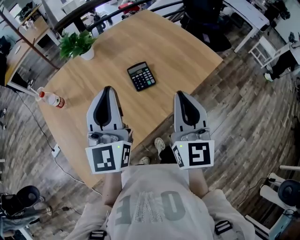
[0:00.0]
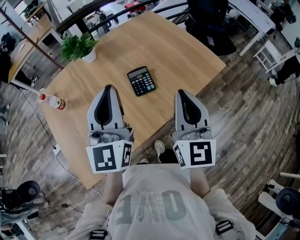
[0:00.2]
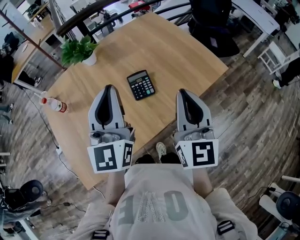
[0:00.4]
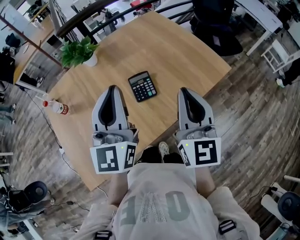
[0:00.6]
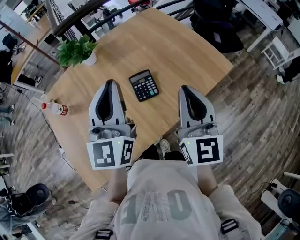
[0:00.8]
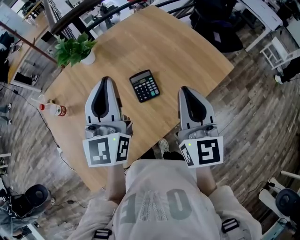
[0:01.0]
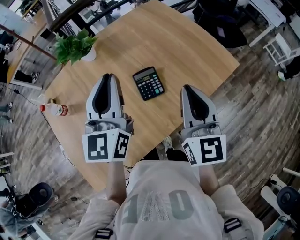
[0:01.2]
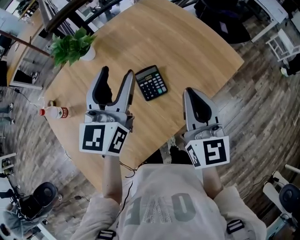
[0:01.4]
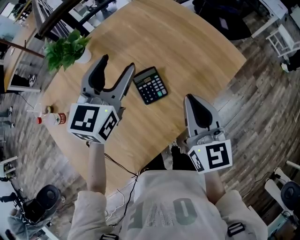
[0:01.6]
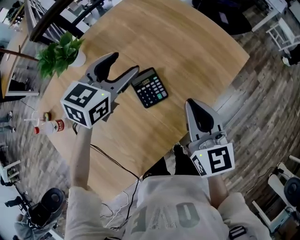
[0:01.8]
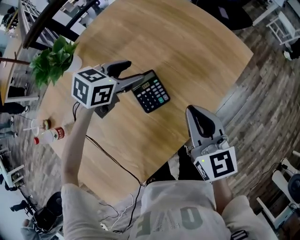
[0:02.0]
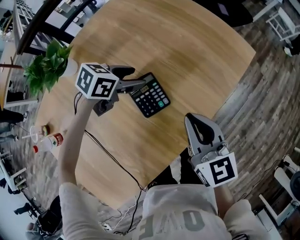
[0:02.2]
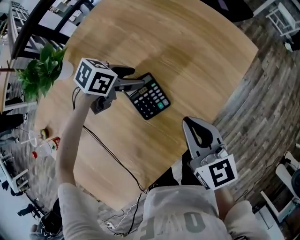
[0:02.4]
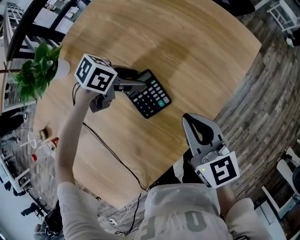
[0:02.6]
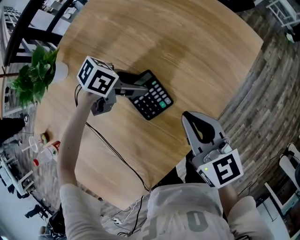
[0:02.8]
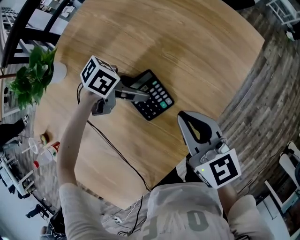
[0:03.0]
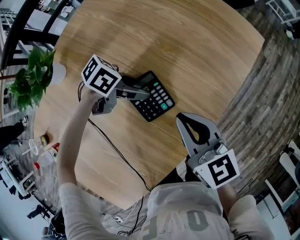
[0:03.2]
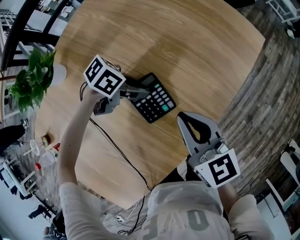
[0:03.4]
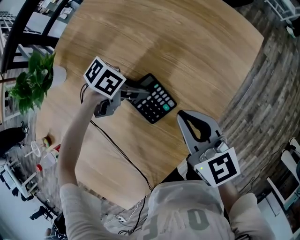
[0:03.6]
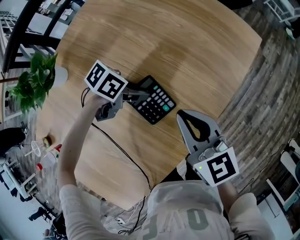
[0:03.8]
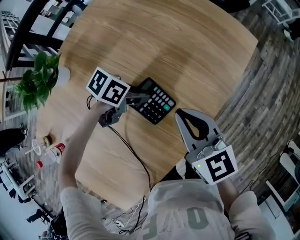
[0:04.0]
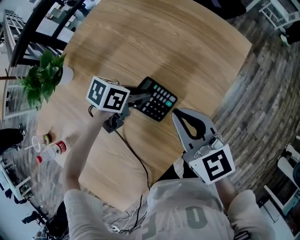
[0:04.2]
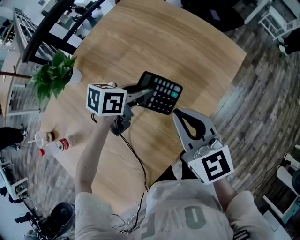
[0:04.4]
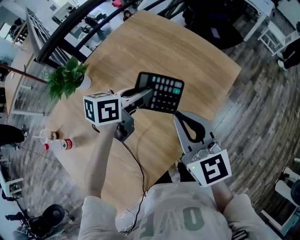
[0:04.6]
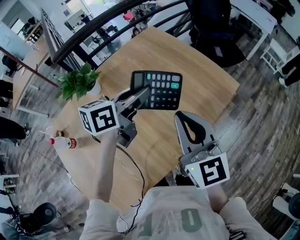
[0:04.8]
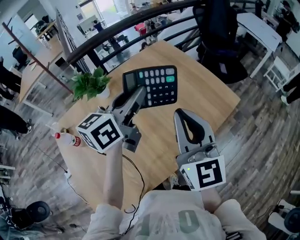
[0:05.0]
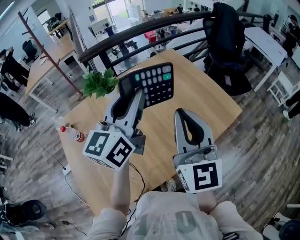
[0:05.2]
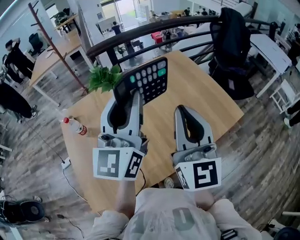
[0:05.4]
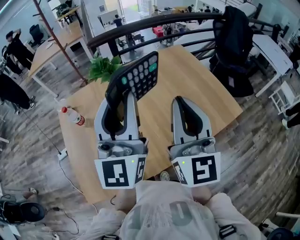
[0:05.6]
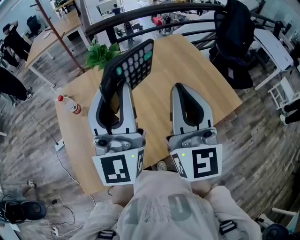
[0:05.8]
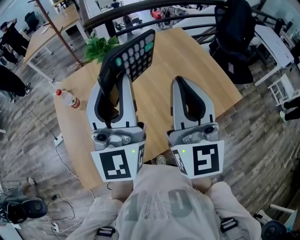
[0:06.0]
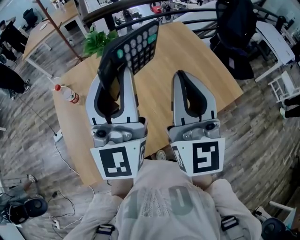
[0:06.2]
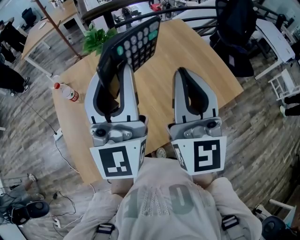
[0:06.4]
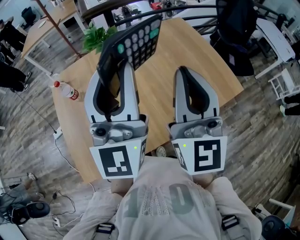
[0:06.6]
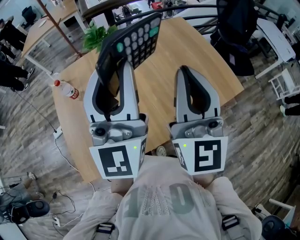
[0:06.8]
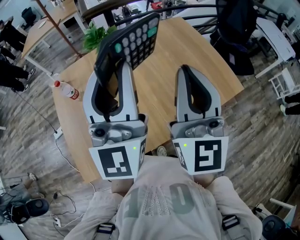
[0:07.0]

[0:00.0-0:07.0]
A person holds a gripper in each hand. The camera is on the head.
0:00.0 to 0:01.4: The two grippers go about 15 cm forward. The left gripper opens.
0:01.4 to 0:02.8: The right gripper moves downward, roughly 15 cm, and swivels some 20 degrees, while the left gripper goes roughly 30 cm downward, and tips its fingers downward by about 40 degrees.
0:02.8 to 0:04.2: The right gripper travels upward by roughly 5 cm. The left gripper closes its fingers.
0:04.2 to 0:05.6: The left gripper is displaced upward by approximately 40 cm, and points its fingers roughly 70 degrees further upward, while the right gripper is displaced upward by about 25 cm, and angles its fingers upward, by about 30 degrees.
0:05.6 to 0:07.0: The grippers move only a little.

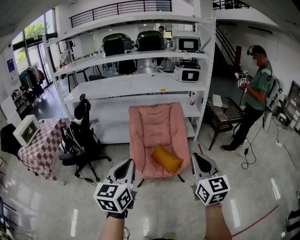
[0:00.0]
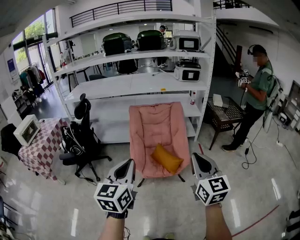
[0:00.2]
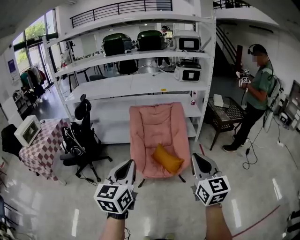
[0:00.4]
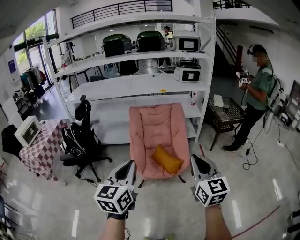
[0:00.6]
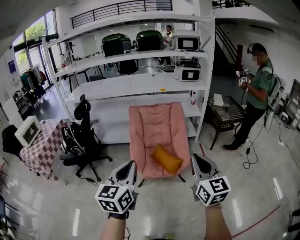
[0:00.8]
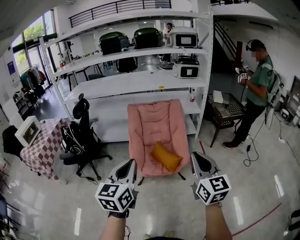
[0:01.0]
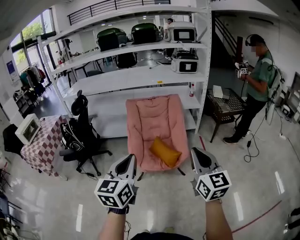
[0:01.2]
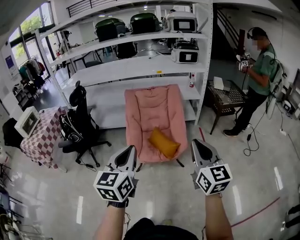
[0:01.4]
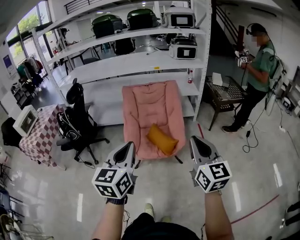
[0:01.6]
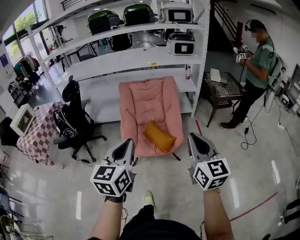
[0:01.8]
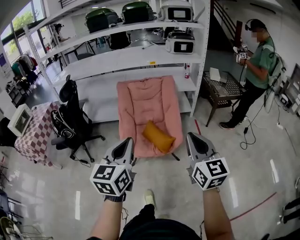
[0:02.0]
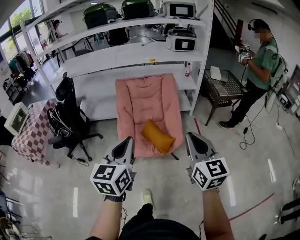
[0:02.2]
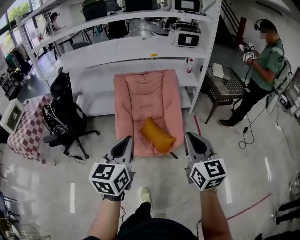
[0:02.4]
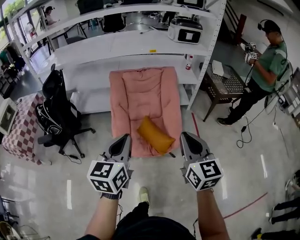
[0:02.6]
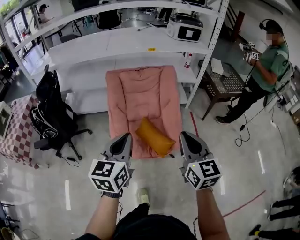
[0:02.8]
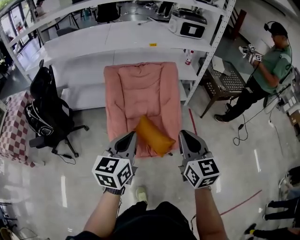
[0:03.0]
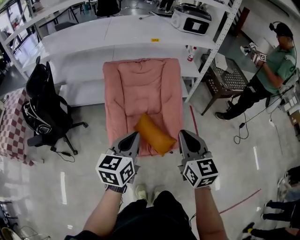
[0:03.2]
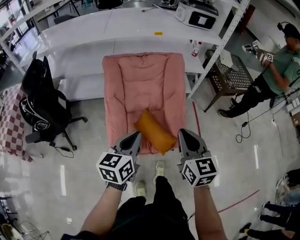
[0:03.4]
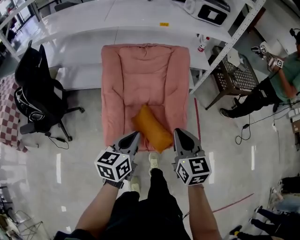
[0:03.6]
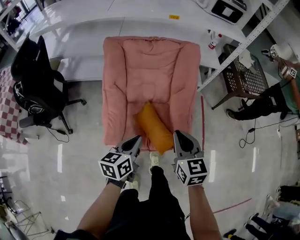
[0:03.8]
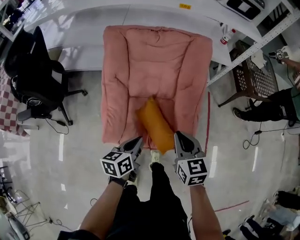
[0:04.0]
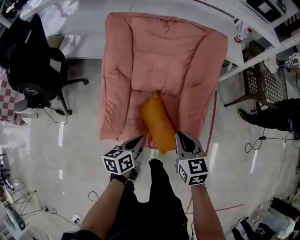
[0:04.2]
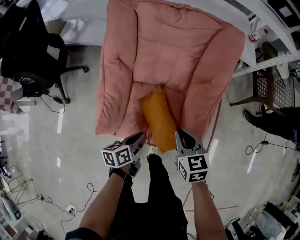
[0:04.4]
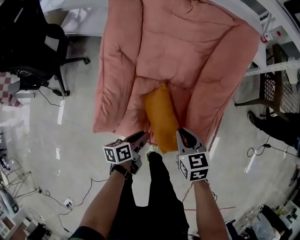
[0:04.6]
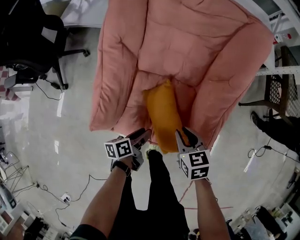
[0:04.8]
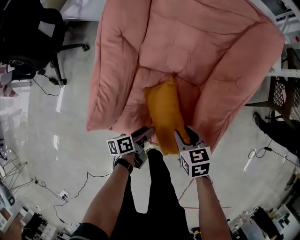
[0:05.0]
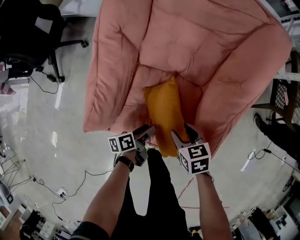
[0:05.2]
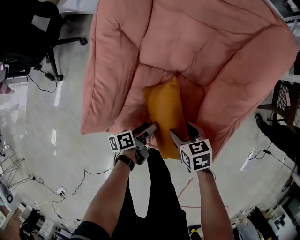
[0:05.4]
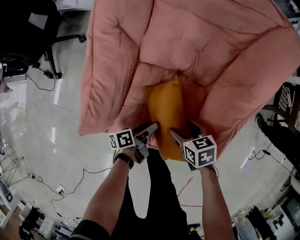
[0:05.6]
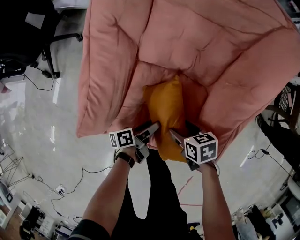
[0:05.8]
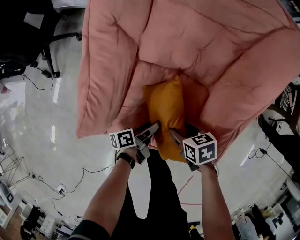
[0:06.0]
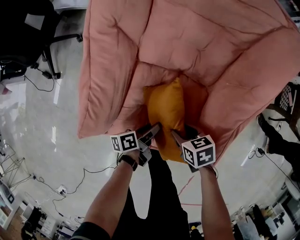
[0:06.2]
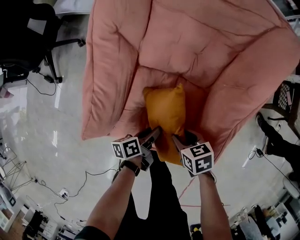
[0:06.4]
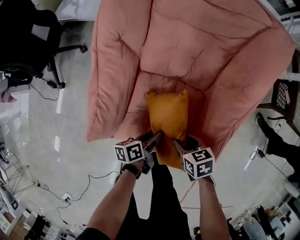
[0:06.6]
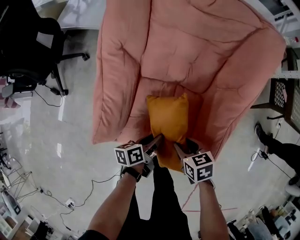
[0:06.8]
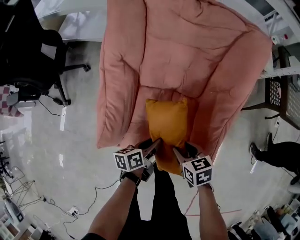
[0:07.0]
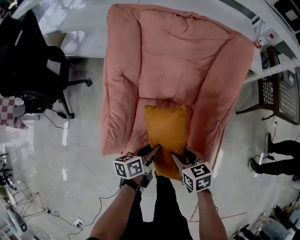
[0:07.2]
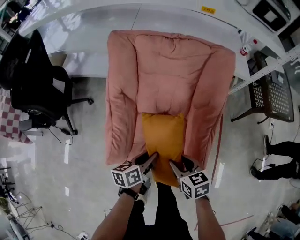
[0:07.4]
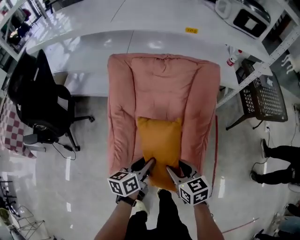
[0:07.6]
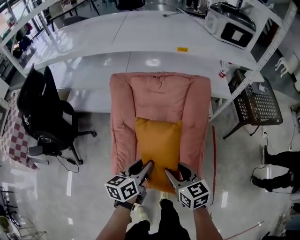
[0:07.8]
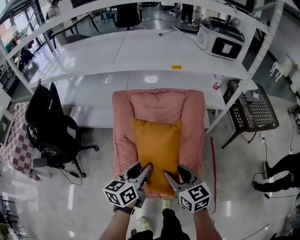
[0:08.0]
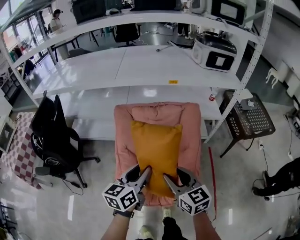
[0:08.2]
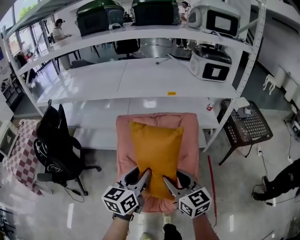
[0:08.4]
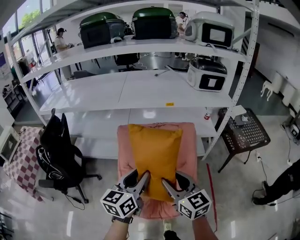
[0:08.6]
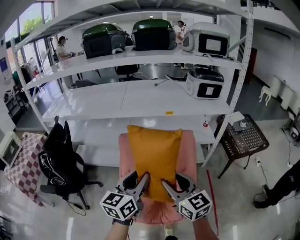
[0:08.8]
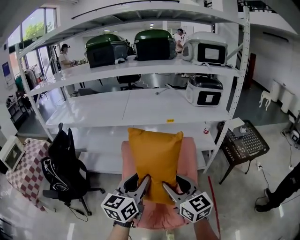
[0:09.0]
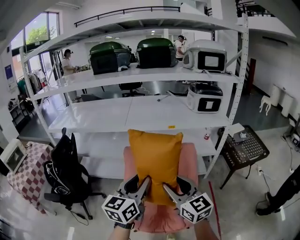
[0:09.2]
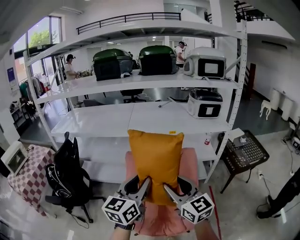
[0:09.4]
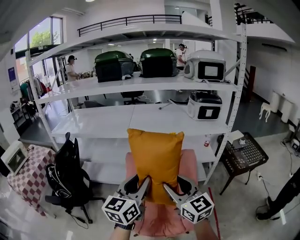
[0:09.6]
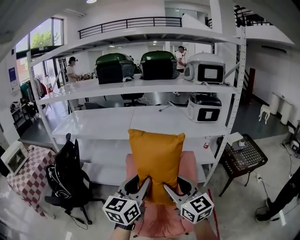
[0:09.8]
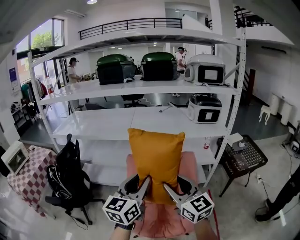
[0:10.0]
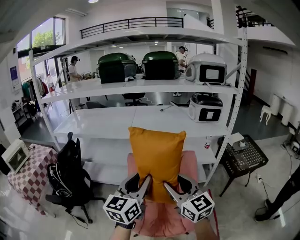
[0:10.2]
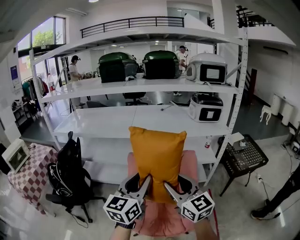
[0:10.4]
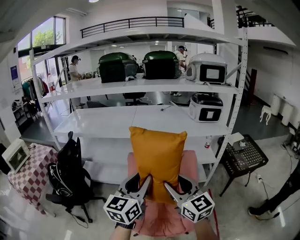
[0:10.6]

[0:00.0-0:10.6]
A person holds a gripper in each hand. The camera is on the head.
0:00.0 to 0:01.6: The two grippers go roughly 10 cm to the right.
0:01.6 to 0:03.0: Both grippers travel together forward, about 30 cm.
0:03.0 to 0:04.6: The two grippers go some 50 cm downward and forward. The left gripper twists some 60 degrees counterclockwise, seen from behind. Meanwhile the right gripper angles its fingers downward, by approximately 40 degrees.
0:04.6 to 0:06.0: Both grippers move downward, about 20 cm. The left gripper rotates roughly 20 degrees, and opens its fingers. The right gripper turns by some 30 degrees, and opens its fingers.
0:06.0 to 0:07.6: The grippers both shift upward by about 35 cm. The left gripper rotates around the line of its fingers by approximately 40 degrees, clockwise from behind, while the right gripper swivels about 40 degrees.
0:07.6 to 0:09.0: Both grippers travel together upward, some 40 cm. The left gripper turns by some 40 degrees. The right gripper tilts its fingers approximately 40 degrees upward.
0:09.0 to 0:10.6: The grippers both shift upward by about 10 cm.

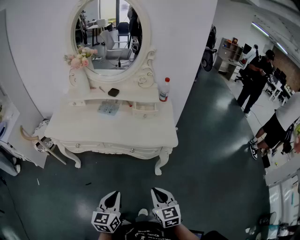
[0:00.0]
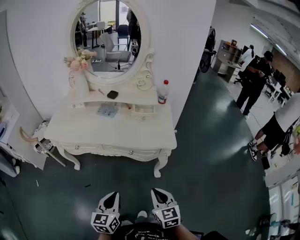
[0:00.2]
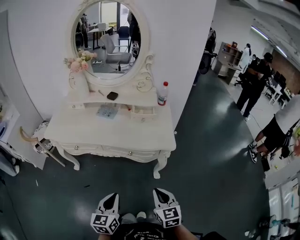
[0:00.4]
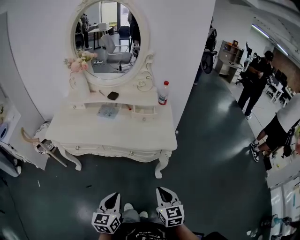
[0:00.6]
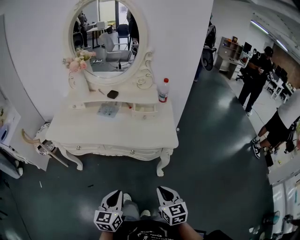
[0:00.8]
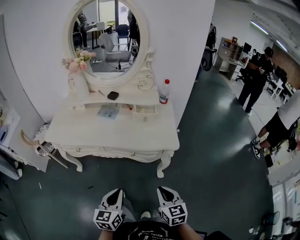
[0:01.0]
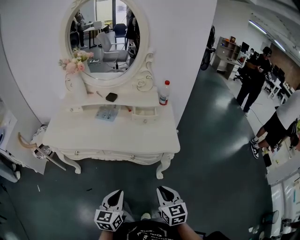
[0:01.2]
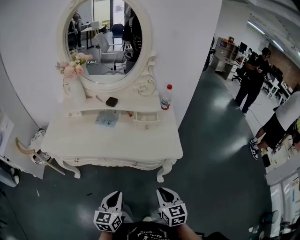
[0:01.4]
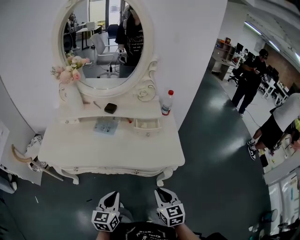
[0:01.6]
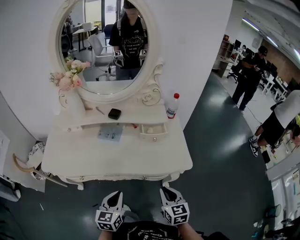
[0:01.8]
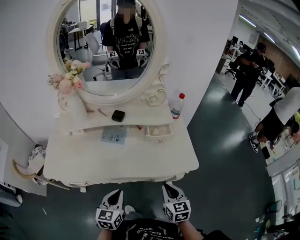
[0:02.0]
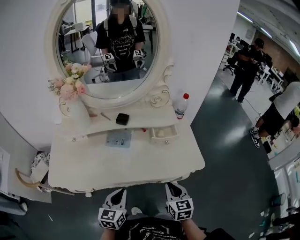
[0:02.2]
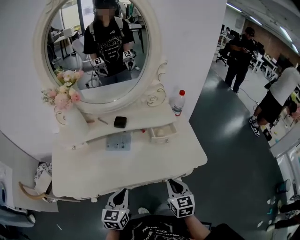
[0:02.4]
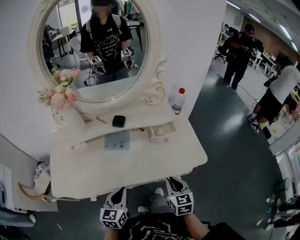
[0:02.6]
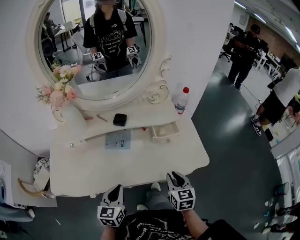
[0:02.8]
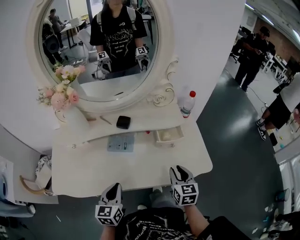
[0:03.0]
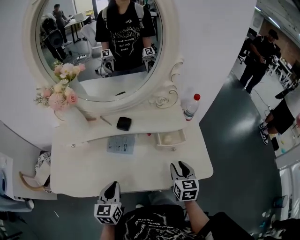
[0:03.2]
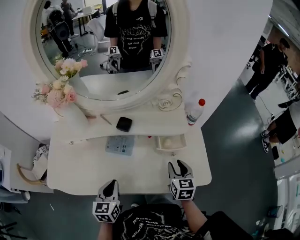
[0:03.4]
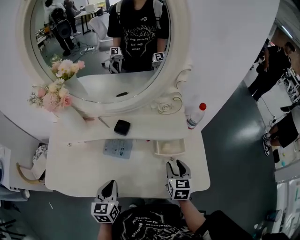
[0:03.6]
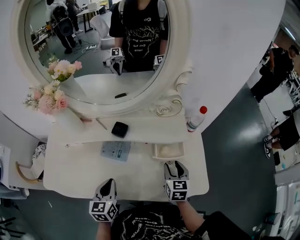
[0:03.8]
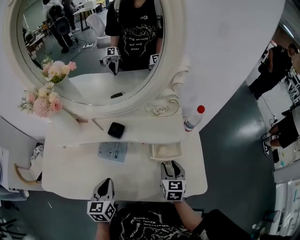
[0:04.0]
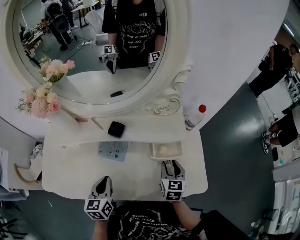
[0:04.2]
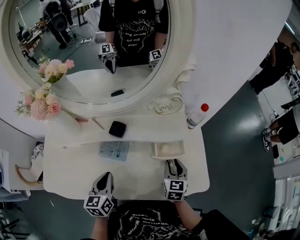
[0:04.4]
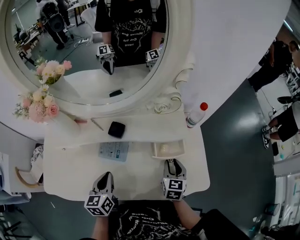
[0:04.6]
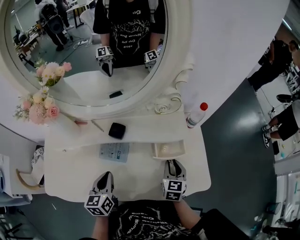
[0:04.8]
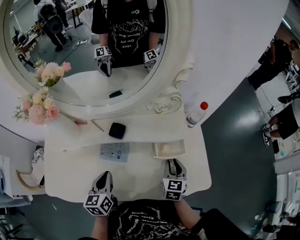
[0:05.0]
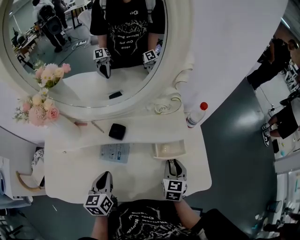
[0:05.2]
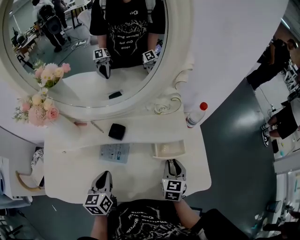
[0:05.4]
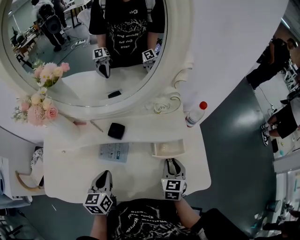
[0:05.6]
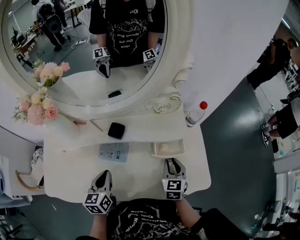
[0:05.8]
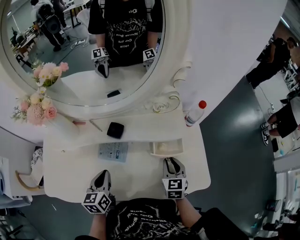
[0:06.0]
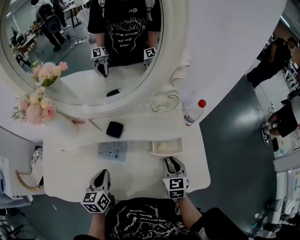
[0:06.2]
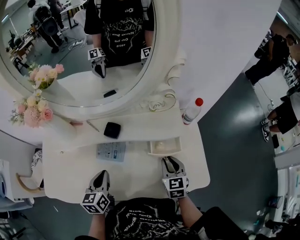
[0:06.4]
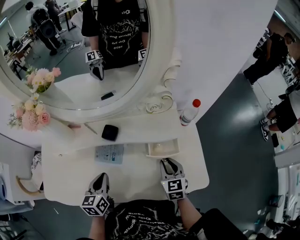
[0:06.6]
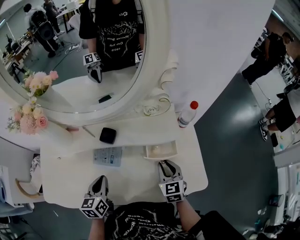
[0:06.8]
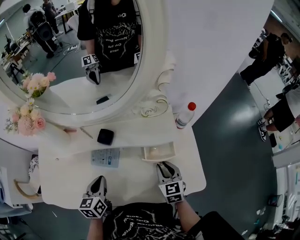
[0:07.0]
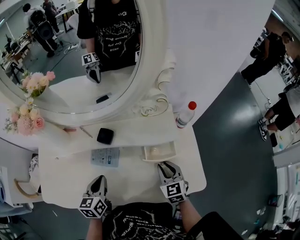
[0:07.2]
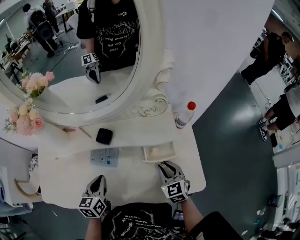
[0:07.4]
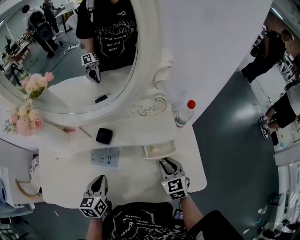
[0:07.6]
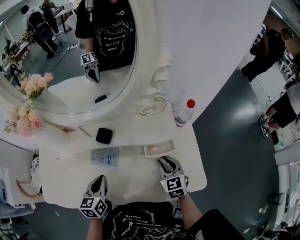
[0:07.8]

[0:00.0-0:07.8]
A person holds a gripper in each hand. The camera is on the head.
0:00.0 to 0:01.6: Both grippers move forward, about 15 cm.
0:01.6 to 0:03.2: The right gripper moves forward, approximately 25 cm, and opens its fingers, while the left gripper heads forward and to the left, covering approximately 25 cm.
0:03.2 to 0:04.6: The two grippers go about 10 cm forward.
0:04.6 to 0:06.2: The grippers move only a little.
0:06.2 to 0:07.8: The grippers make only small movements.
